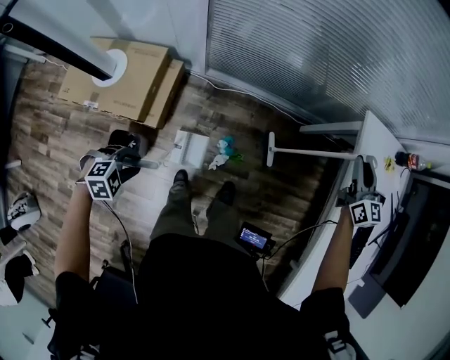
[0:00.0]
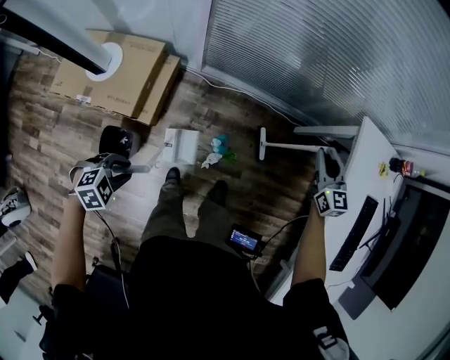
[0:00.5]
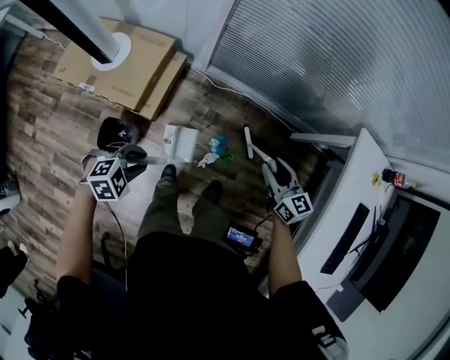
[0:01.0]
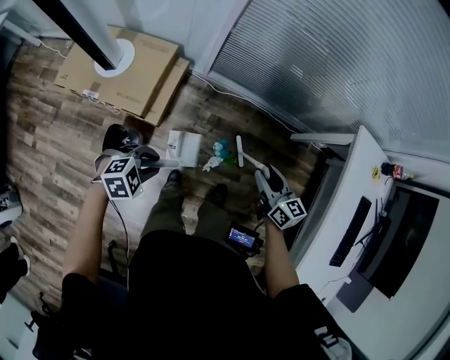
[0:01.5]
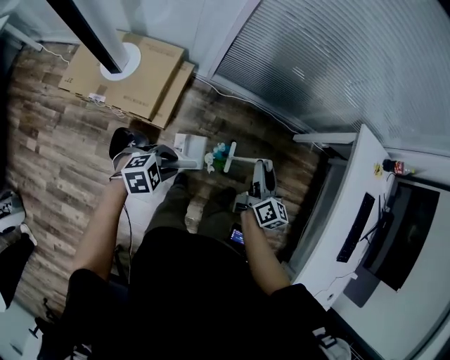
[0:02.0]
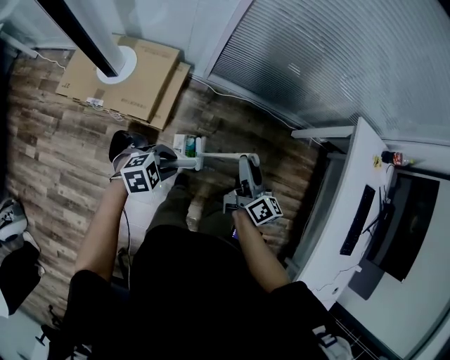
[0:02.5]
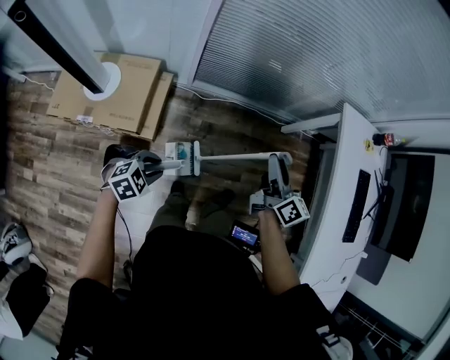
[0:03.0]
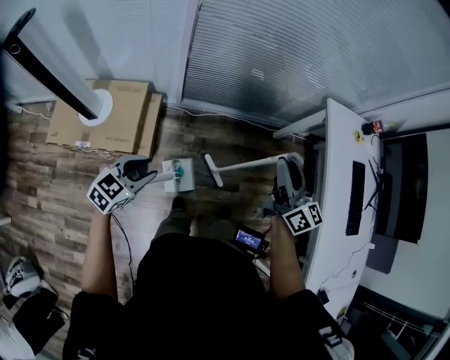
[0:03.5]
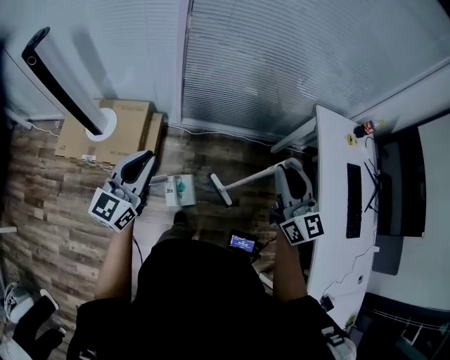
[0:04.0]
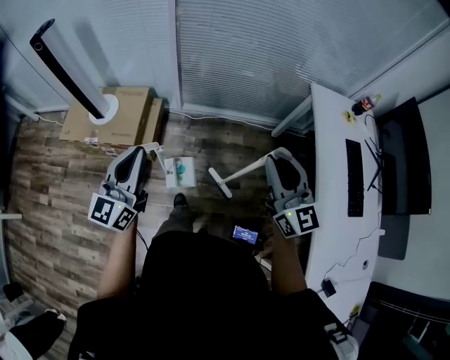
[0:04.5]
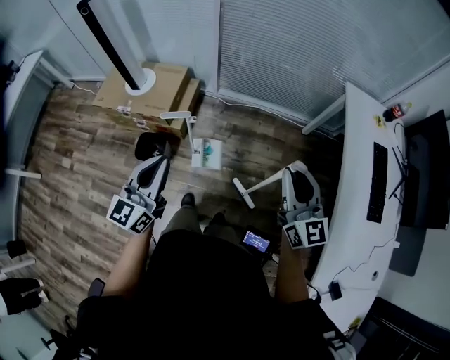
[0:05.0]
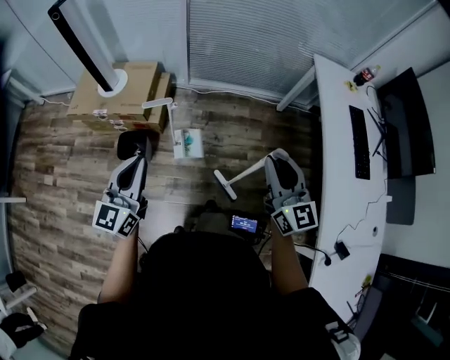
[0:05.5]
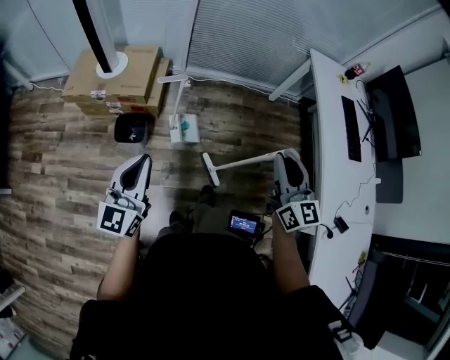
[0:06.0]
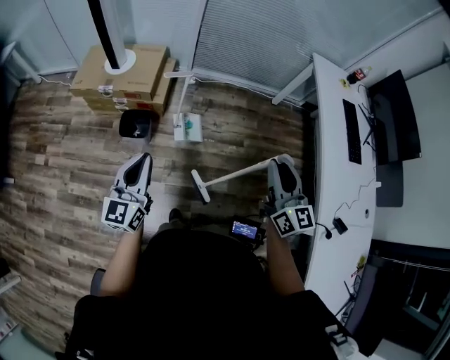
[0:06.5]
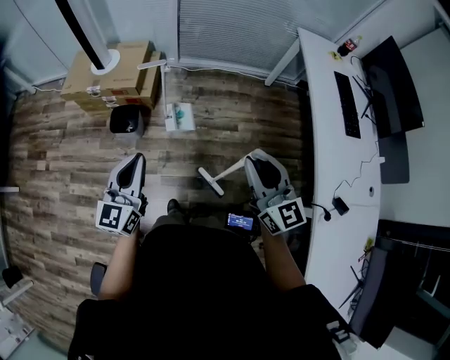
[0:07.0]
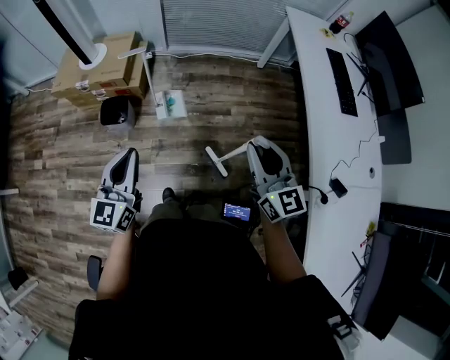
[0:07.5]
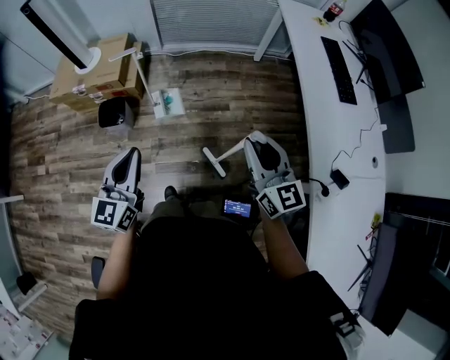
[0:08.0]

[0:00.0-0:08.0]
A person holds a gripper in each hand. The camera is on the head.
0:00.0 to 0:02.0: The right gripper heads to the left, backward and downward, covering approximately 40 cm, and swivels roughly 40 degrees.
0:02.0 to 0:04.0: The left gripper moves upward, roughly 30 cm, and tilts its fingers roughly 60 degrees upward; the right gripper goes some 30 cm upward and to the right, and changes its angle by roughly 40 degrees.
0:04.0 to 0:06.0: The two grippers go about 40 cm backward.
0:06.0 to 0:08.0: The left gripper goes roughly 20 cm to the right and backward, while the right gripper shifts about 20 cm to the right, backward and downward.

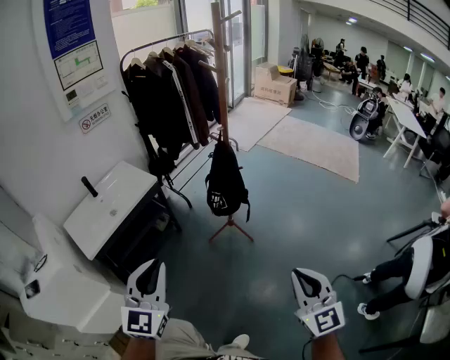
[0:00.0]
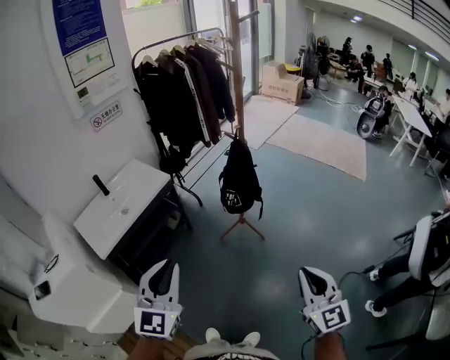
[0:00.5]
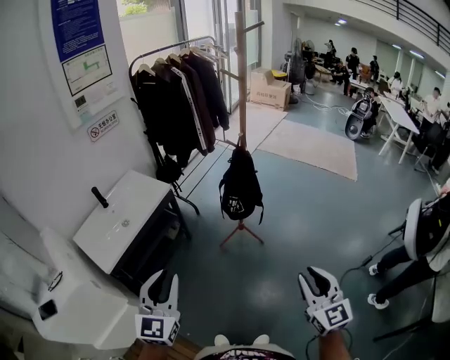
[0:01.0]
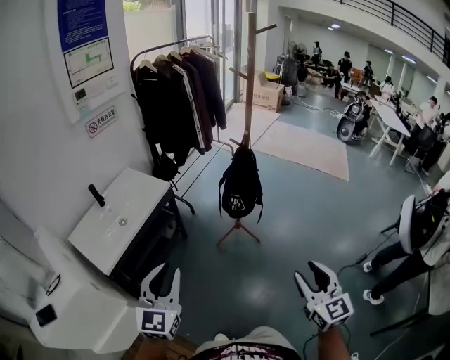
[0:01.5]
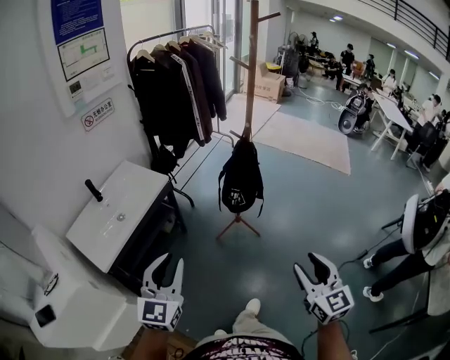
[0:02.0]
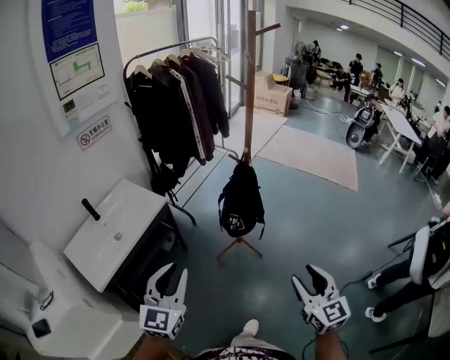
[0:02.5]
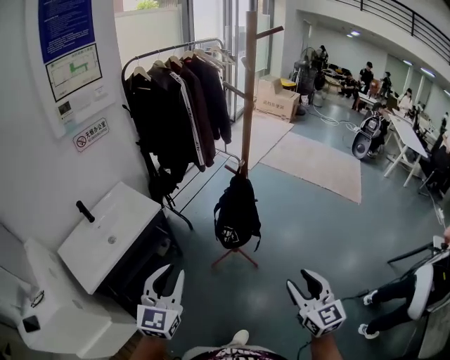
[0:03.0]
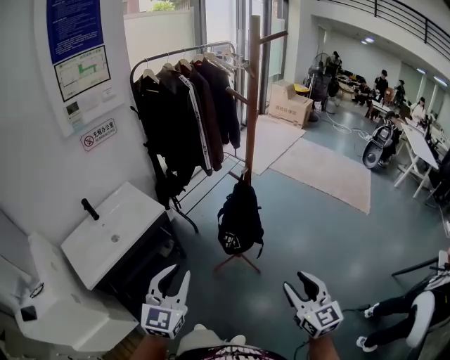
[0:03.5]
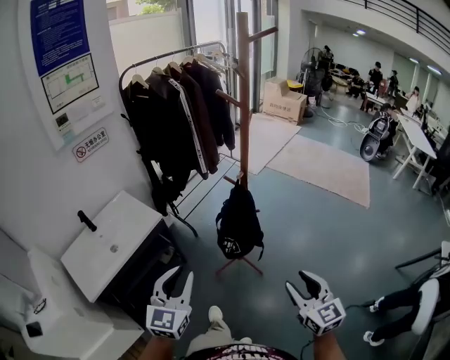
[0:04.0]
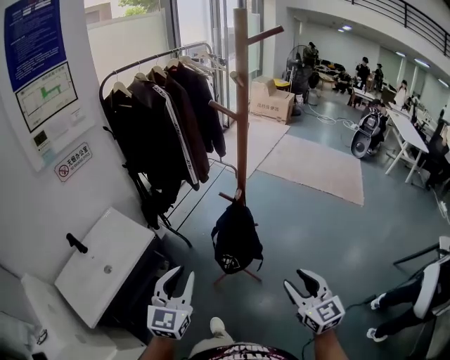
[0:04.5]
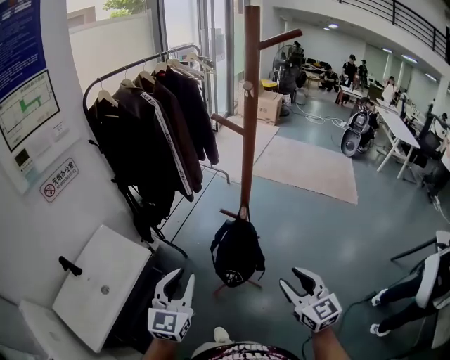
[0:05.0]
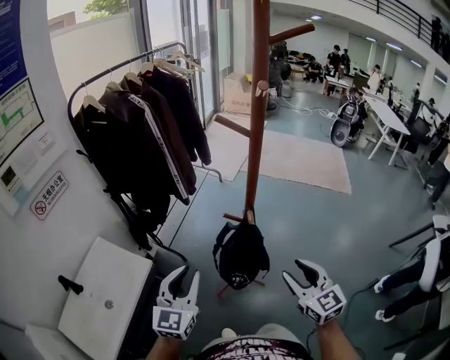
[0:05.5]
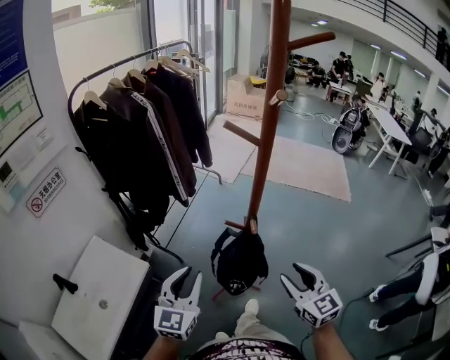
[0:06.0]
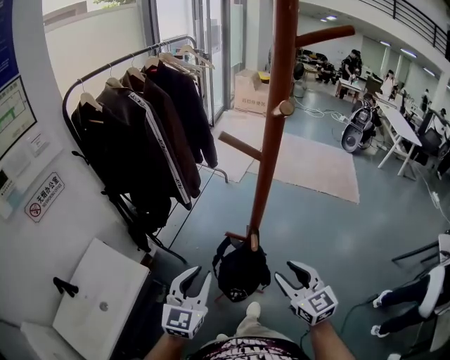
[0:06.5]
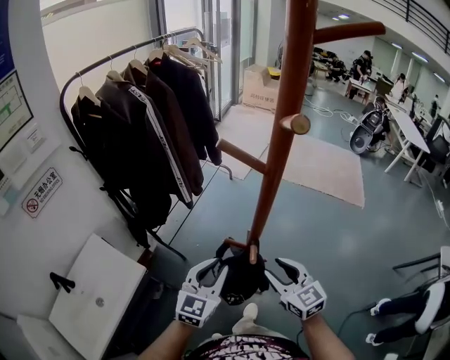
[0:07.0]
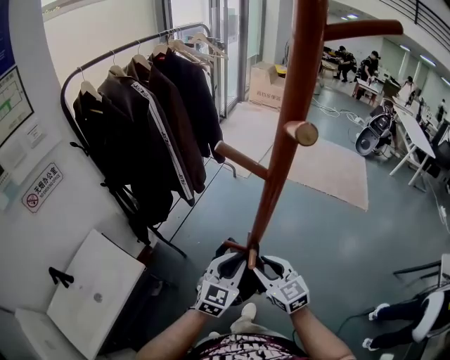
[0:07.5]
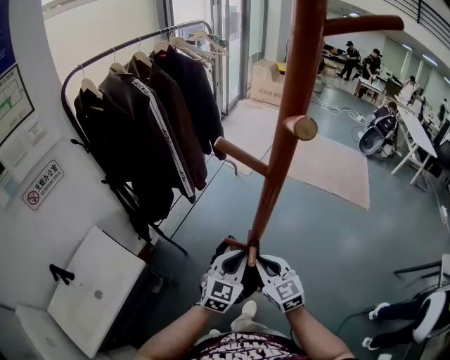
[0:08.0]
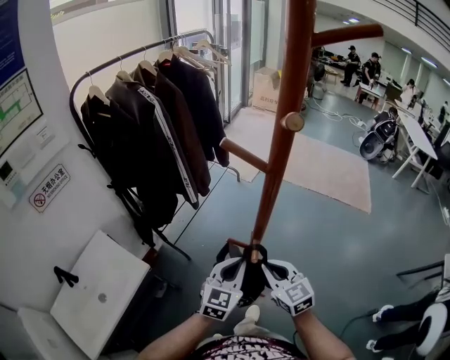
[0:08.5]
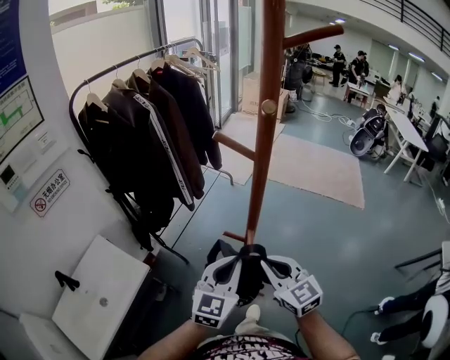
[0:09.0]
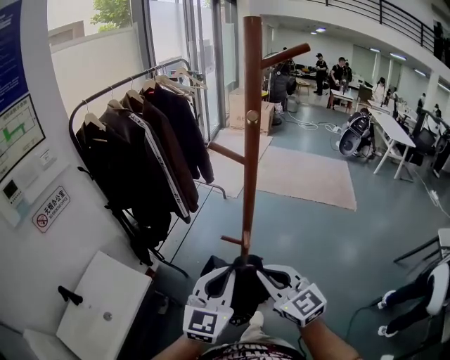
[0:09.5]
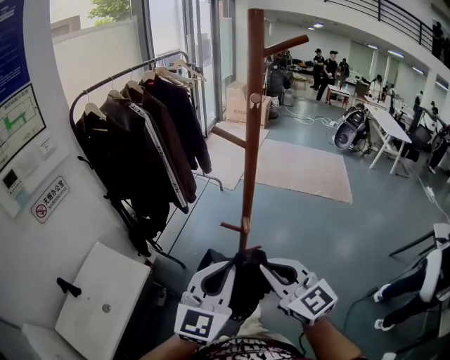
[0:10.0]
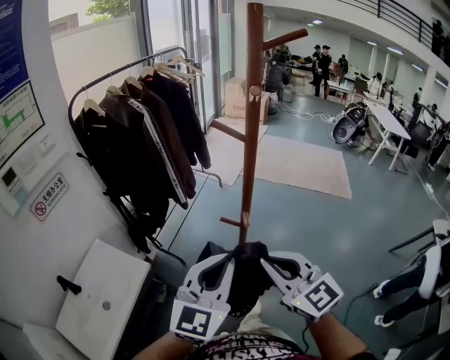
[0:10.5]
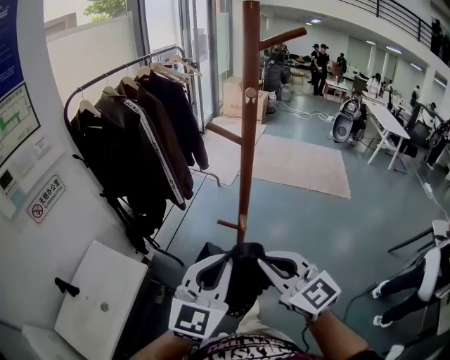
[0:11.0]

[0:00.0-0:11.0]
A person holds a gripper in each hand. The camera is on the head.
0:00.0 to 0:02.0: The grippers both shift to the left by some 15 cm. The right gripper opens.
0:02.0 to 0:03.5: The two grippers go roughly 20 cm forward and to the right.
0:03.5 to 0:05.5: Both grippers move forward, about 25 cm.
0:05.5 to 0:07.5: The left gripper moves to the right, forward and downward, approximately 25 cm. The right gripper heads forward and downward, covering about 20 cm.
0:07.5 to 0:09.0: The grippers both shift upward and backward by approximately 10 cm. The right gripper closes its fingers.
0:09.0 to 0:11.0: The grippers both shift upward and backward by approximately 15 cm.

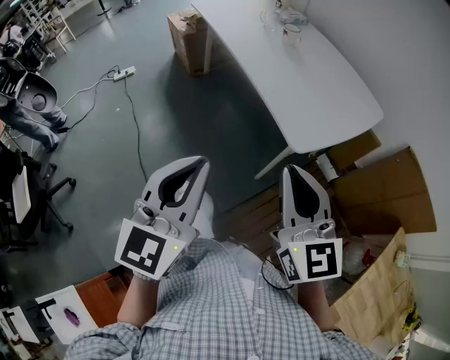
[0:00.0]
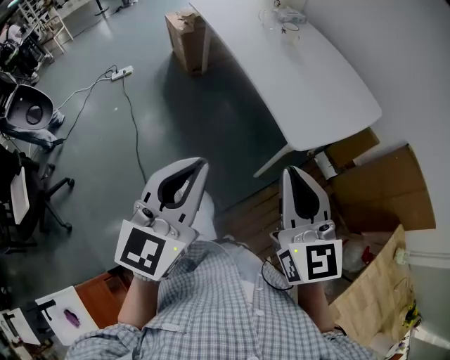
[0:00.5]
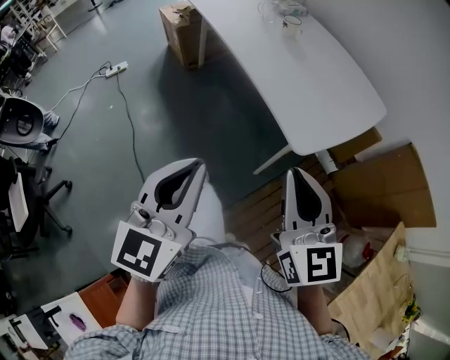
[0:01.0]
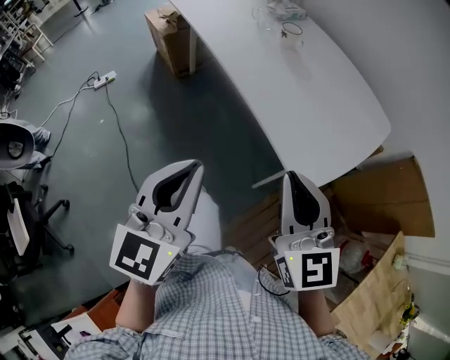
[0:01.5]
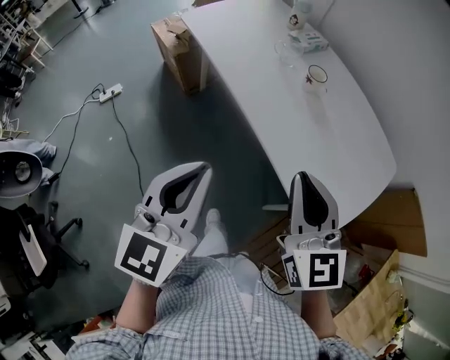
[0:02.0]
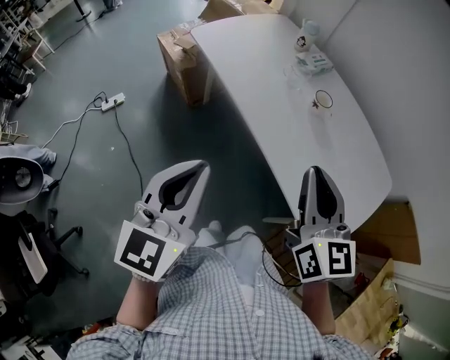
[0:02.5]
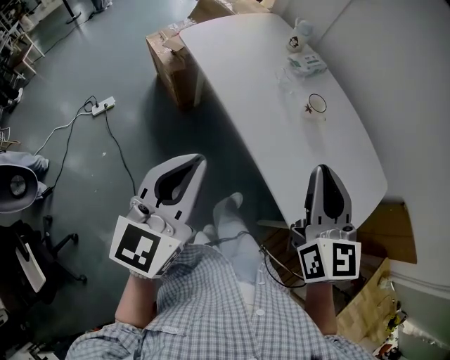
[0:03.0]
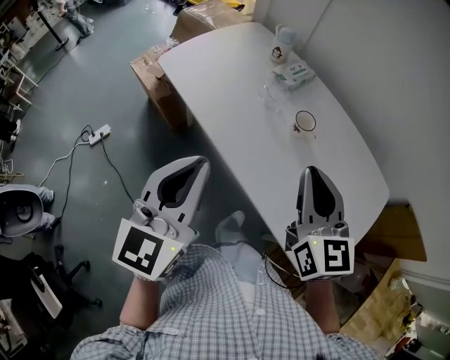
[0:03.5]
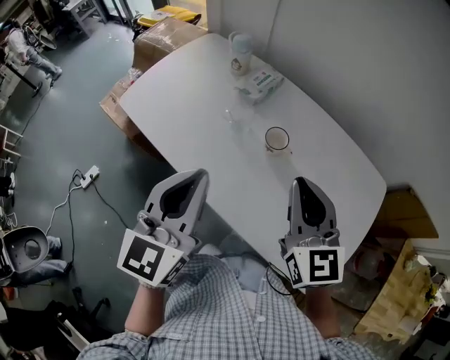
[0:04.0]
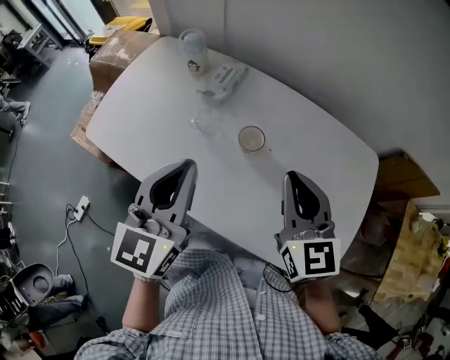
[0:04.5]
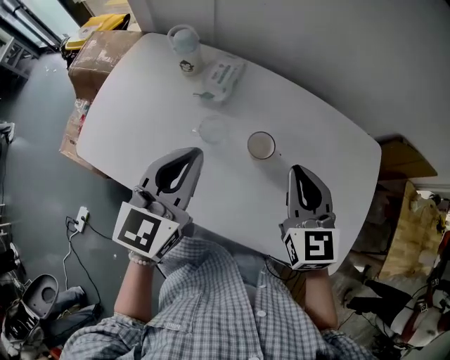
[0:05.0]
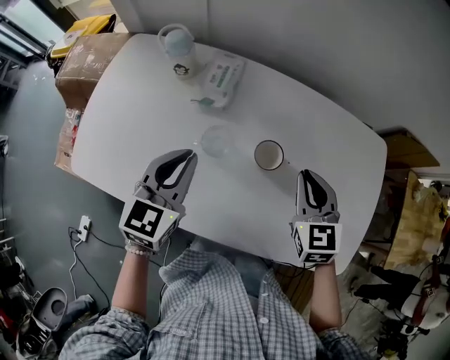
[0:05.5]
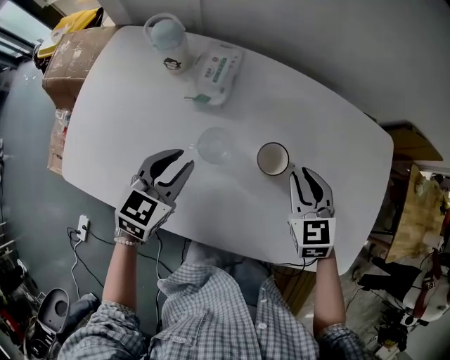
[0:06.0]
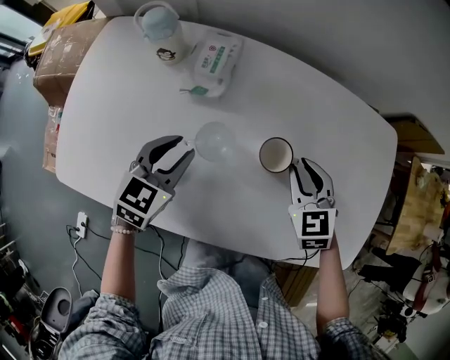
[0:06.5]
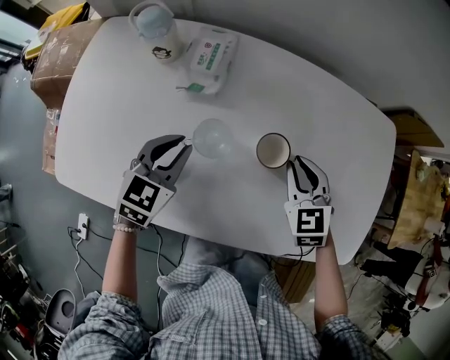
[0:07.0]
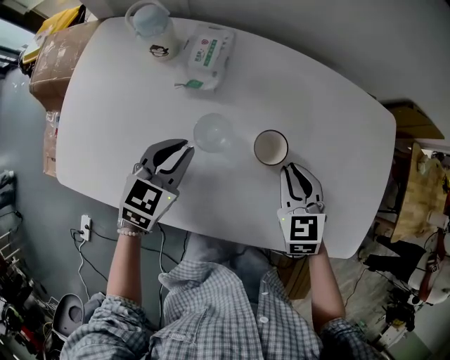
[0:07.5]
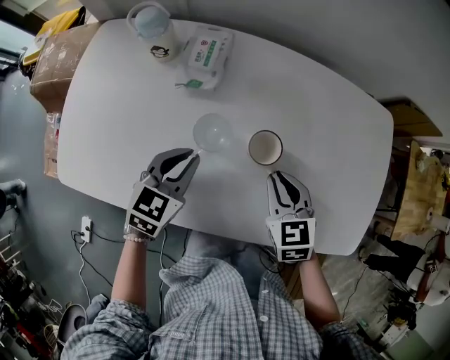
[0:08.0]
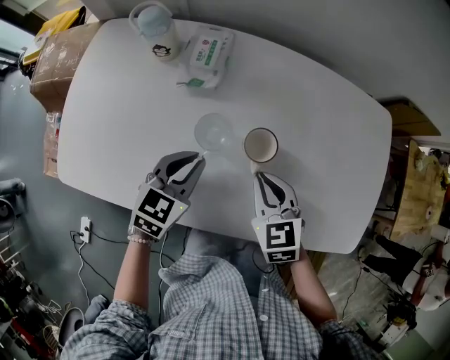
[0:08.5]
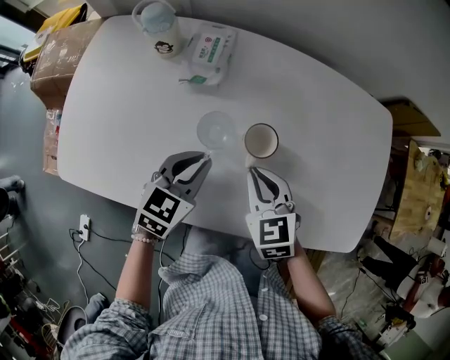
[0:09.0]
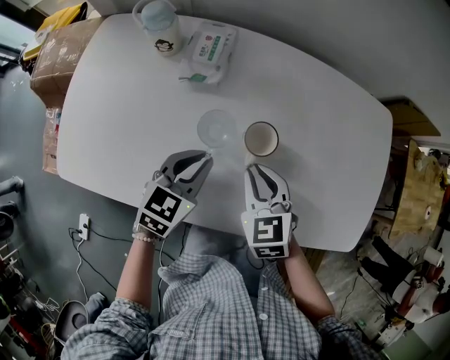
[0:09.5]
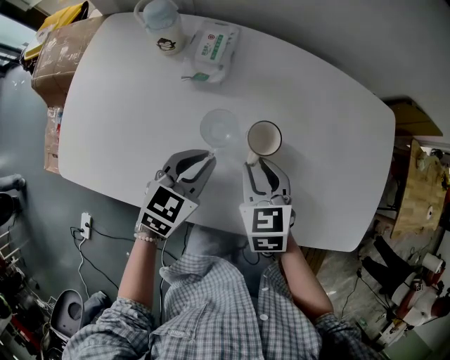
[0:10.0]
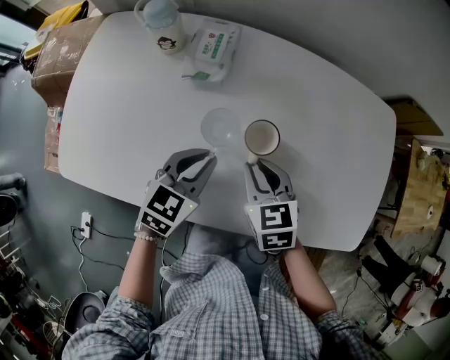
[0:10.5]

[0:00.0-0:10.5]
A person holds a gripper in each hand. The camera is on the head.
0:00.0 to 0:02.0: Both grippers move forward, some 30 cm.
0:02.0 to 0:04.0: Both grippers travel together forward, some 25 cm.
0:04.0 to 0:06.5: The grippers both shift downward by about 25 cm. The right gripper points its fingers roughly 30 degrees further downward; the left gripper turns by about 50 degrees, and opens.
0:06.5 to 0:08.5: The left gripper shifts by roughly 5 cm; the right gripper moves backward and to the left, some 10 cm.
0:08.5 to 0:10.5: The grippers move only a little.
